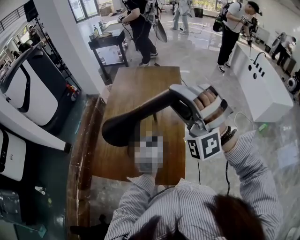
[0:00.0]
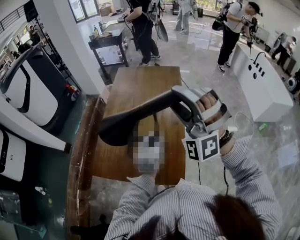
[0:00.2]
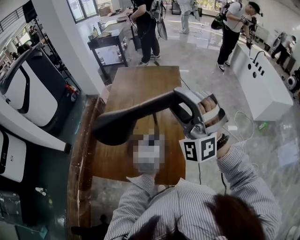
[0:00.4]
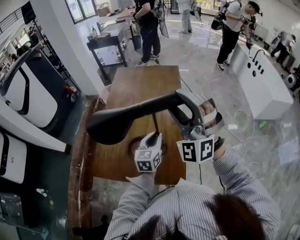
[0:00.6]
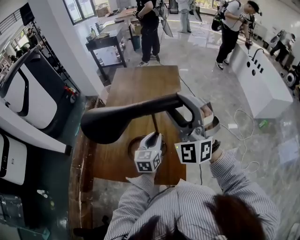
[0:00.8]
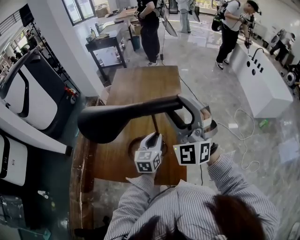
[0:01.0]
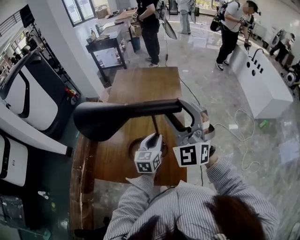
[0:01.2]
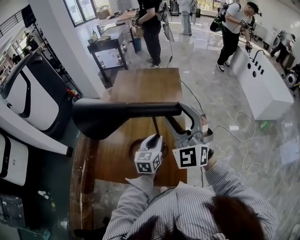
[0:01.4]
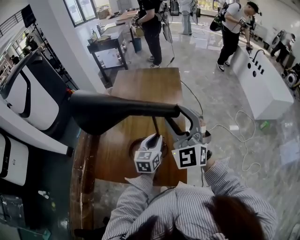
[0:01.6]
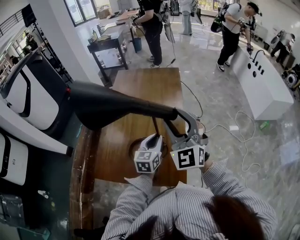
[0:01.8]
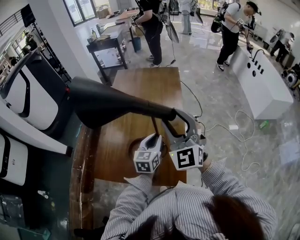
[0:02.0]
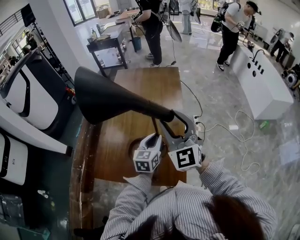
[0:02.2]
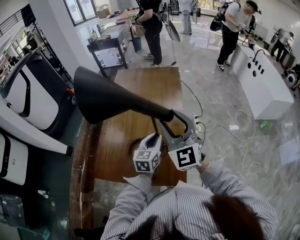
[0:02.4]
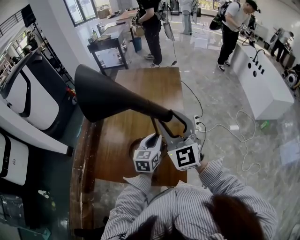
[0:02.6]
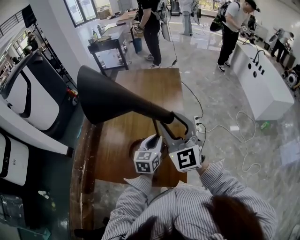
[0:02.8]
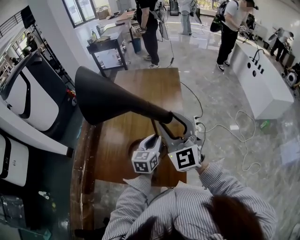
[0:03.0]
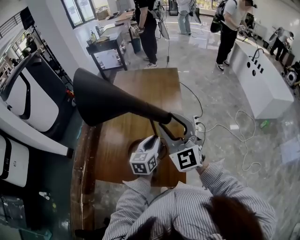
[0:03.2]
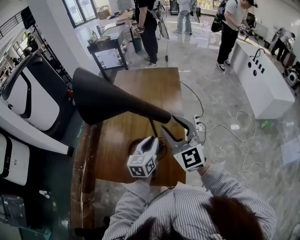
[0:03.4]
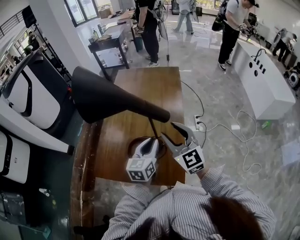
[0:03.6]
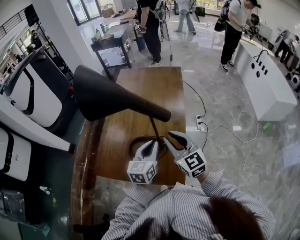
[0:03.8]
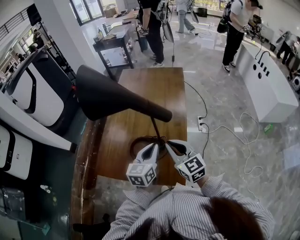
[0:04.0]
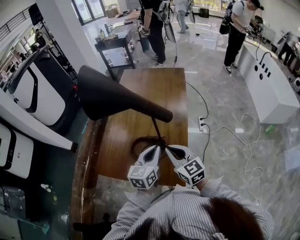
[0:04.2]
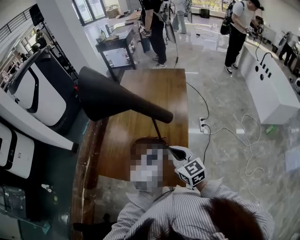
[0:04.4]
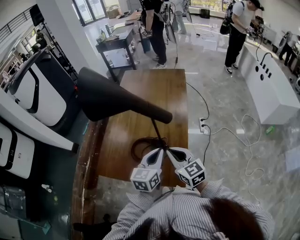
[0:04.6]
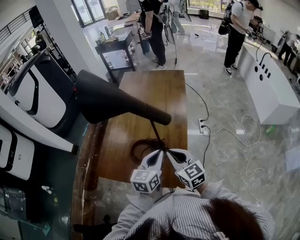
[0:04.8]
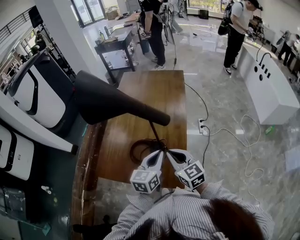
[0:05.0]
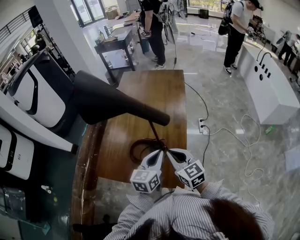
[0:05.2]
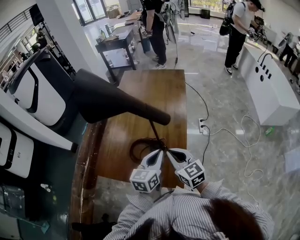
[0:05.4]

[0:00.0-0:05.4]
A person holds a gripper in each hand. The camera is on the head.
0:00.0 to 0:01.4: The right gripper changes place by some 5 cm, and twists about 50 degrees clockwise, seen from behind.
0:01.4 to 0:02.8: The right gripper turns by some 20 degrees.
0:02.8 to 0:04.0: The left gripper goes approximately 5 cm backward; the right gripper heads downward and backward, covering roughly 15 cm, rotates roughly 30 degrees, and closes.
0:04.0 to 0:05.4: The grippers make only small movements.

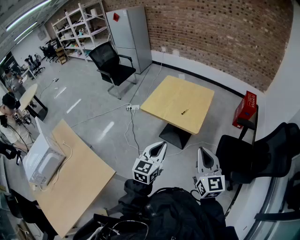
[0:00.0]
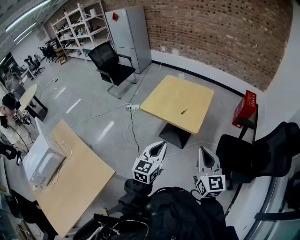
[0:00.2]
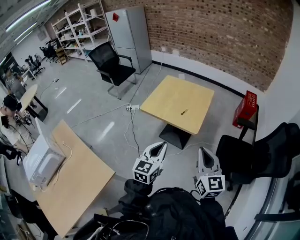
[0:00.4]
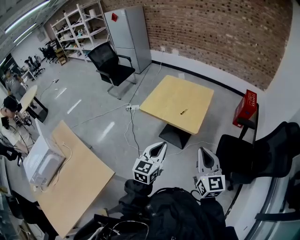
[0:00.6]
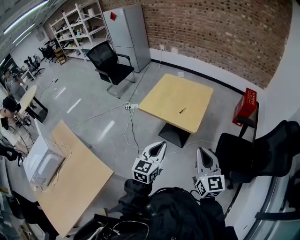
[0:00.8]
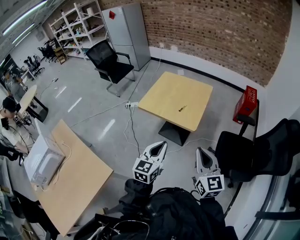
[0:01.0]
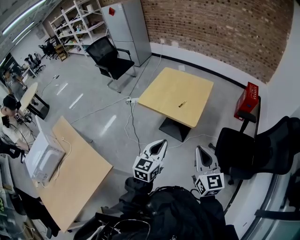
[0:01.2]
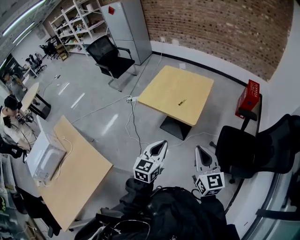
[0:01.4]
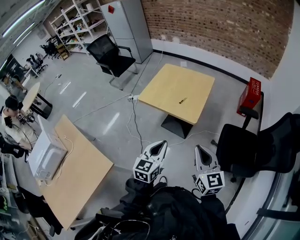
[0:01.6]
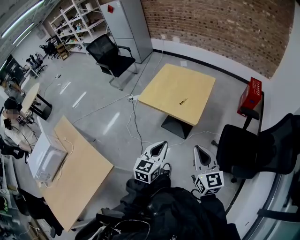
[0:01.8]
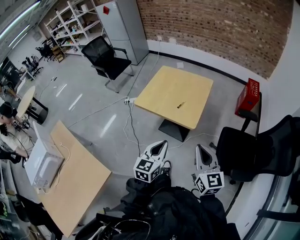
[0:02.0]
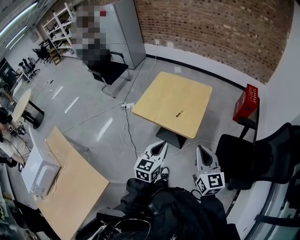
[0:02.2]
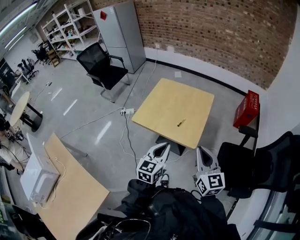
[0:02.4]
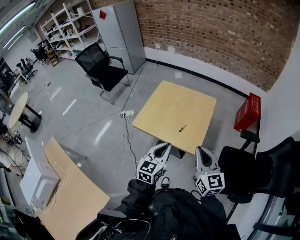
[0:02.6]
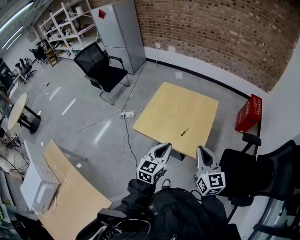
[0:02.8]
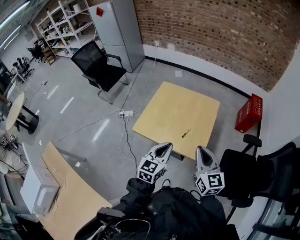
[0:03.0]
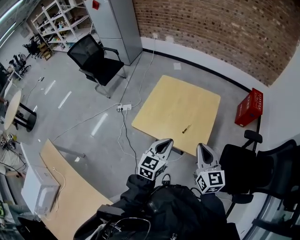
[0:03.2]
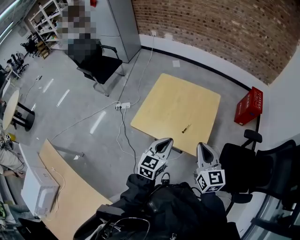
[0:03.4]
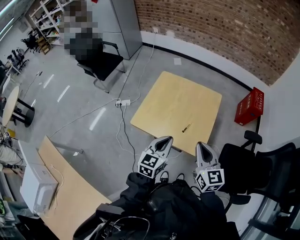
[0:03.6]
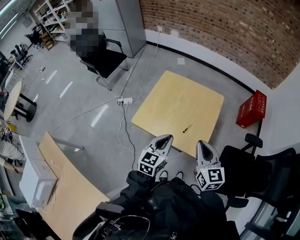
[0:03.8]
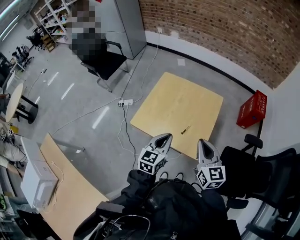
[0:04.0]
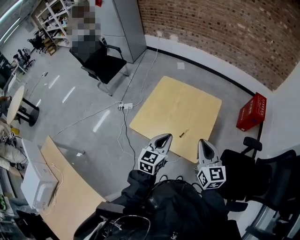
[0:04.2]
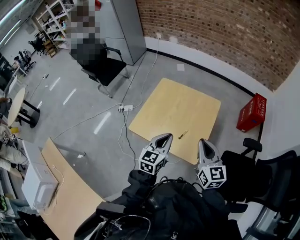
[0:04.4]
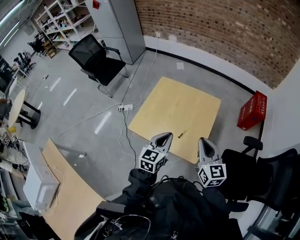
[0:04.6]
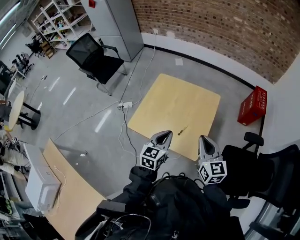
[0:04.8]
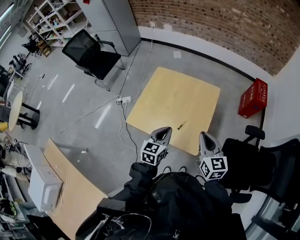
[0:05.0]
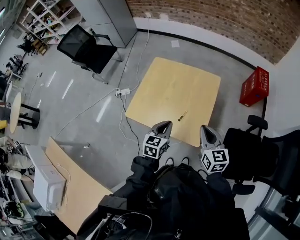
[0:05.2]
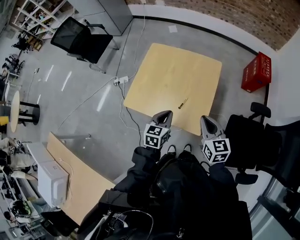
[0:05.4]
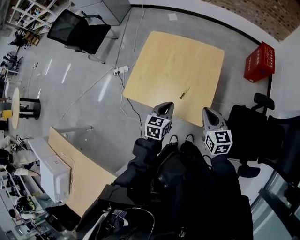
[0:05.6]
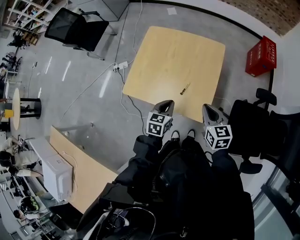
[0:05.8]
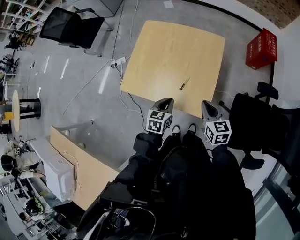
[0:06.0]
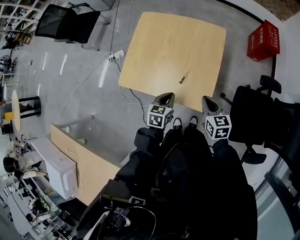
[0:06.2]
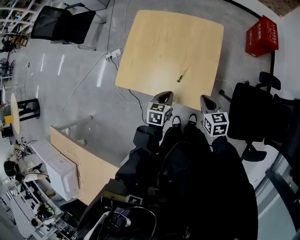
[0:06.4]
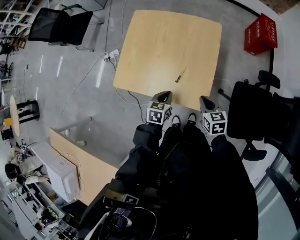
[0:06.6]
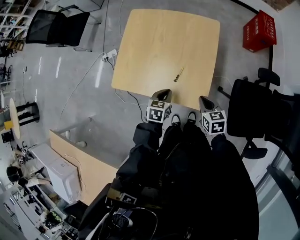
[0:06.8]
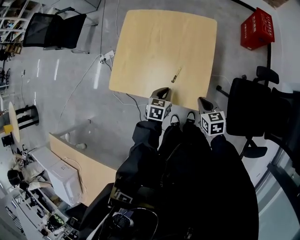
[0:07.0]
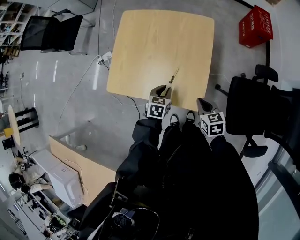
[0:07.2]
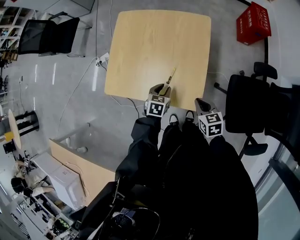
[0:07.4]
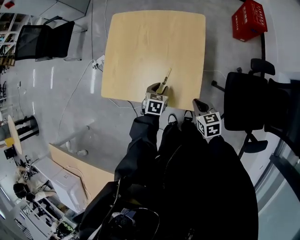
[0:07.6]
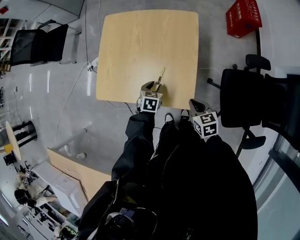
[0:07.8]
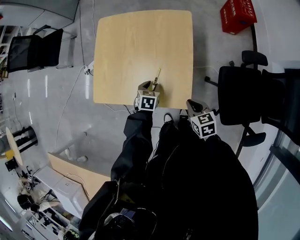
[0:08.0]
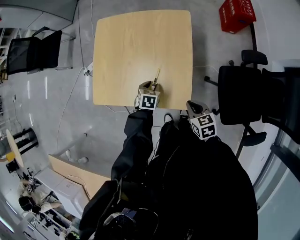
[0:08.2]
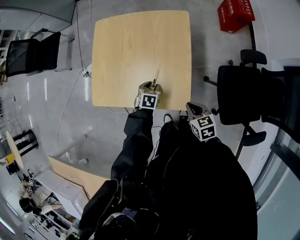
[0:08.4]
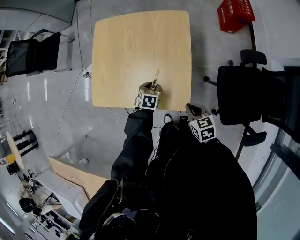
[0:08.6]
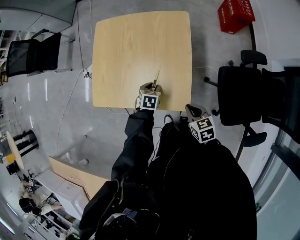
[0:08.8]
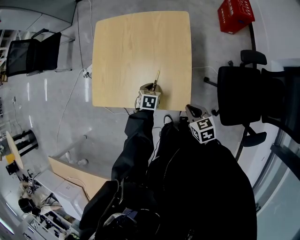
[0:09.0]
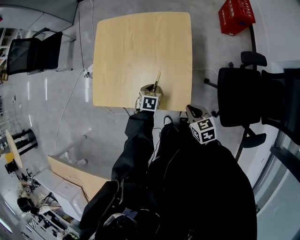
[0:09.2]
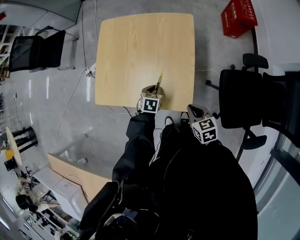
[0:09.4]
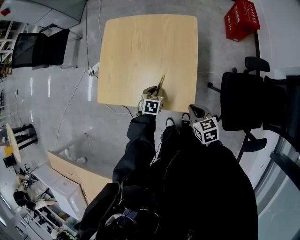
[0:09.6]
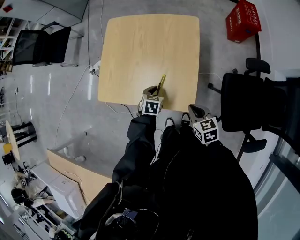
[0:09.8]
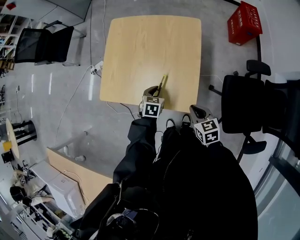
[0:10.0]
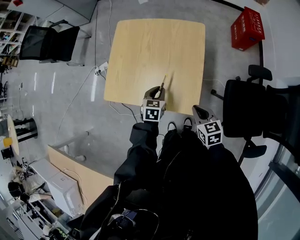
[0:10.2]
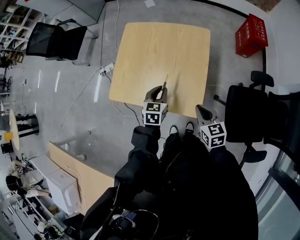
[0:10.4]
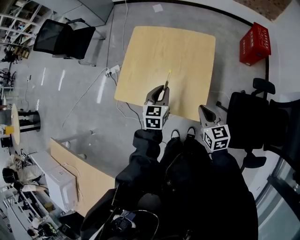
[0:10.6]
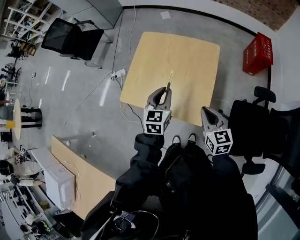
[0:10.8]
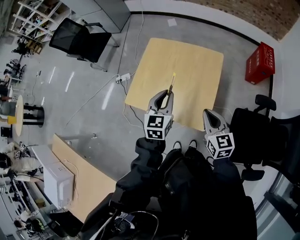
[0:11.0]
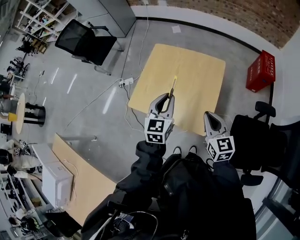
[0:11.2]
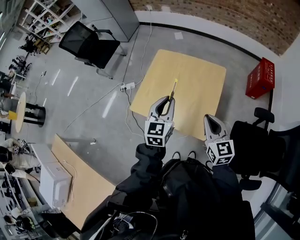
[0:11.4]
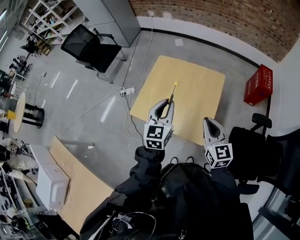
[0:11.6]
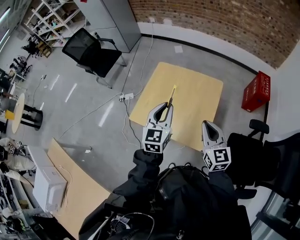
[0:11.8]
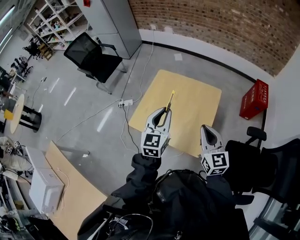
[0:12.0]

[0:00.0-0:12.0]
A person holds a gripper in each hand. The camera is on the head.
0:00.0 to 0:01.6: The left gripper shifts some 5 cm to the right; the right gripper shifts by about 5 cm.
0:01.6 to 0:03.0: The two grippers go about 30 cm forward.
0:03.0 to 0:04.4: Both grippers travel together forward, roughly 10 cm.
0:04.4 to 0:06.0: The grippers both shift downward by roughly 20 cm. The left gripper rotates roughly 30 degrees. Meanwhile the right gripper swivels about 30 degrees.
0:06.0 to 0:07.6: The left gripper heads downward and forward, covering roughly 15 cm, and opens its fingers, while the right gripper goes some 10 cm downward.
0:07.6 to 0:09.0: The grippers stay close to where they were, moving slightly.
0:09.0 to 0:10.4: The right gripper goes some 10 cm upward, while the left gripper heads upward, covering some 15 cm, and turns by roughly 30 degrees.
0:10.4 to 0:12.0: The grippers both shift upward by about 25 cm. The right gripper rotates about 30 degrees. Meanwhile the left gripper tilts its fingers roughly 30 degrees upward.

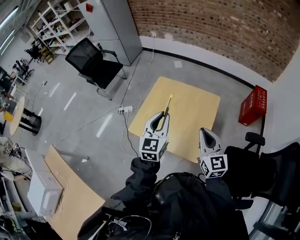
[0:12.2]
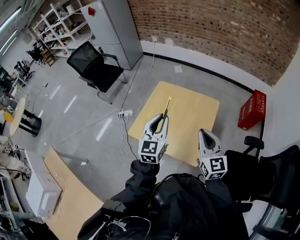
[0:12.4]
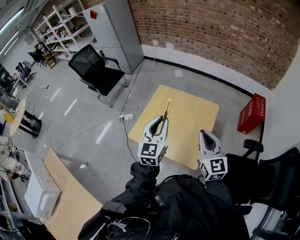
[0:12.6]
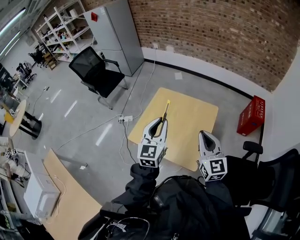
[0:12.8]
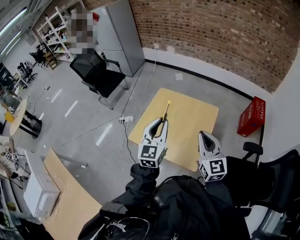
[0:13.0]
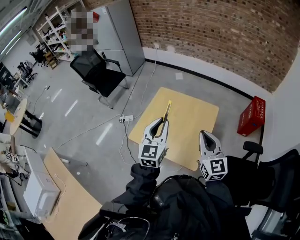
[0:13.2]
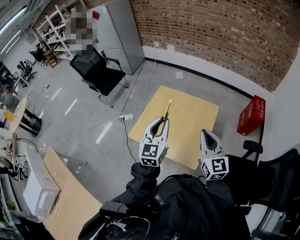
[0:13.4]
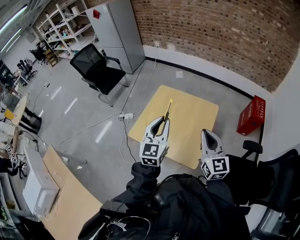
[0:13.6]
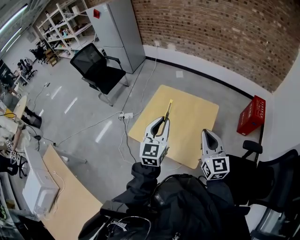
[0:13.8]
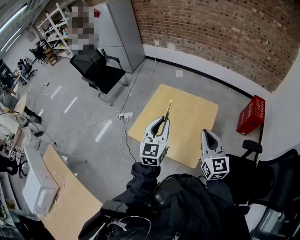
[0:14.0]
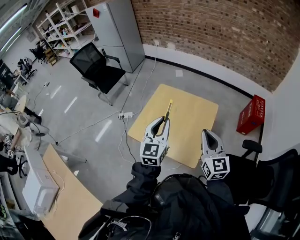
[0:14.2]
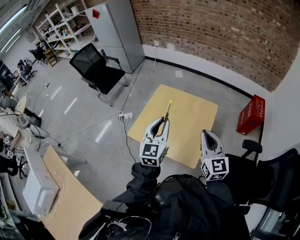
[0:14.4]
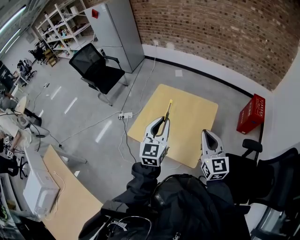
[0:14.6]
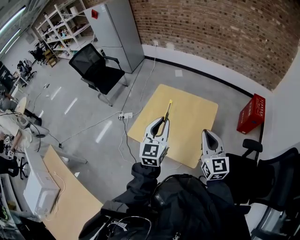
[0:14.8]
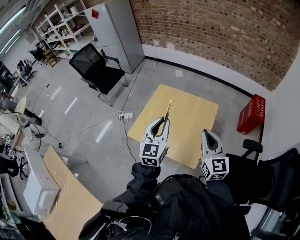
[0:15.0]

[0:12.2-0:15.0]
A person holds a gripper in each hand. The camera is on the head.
0:12.2 to 0:13.6: There are only small adjustments of the grippers.
0:13.6 to 0:15.0: The two grippers keep their place.

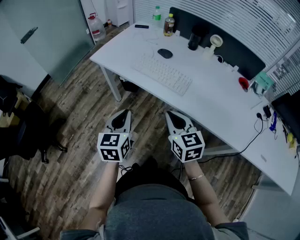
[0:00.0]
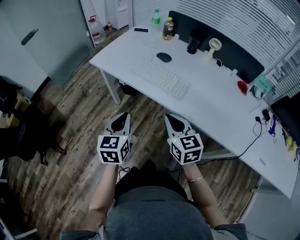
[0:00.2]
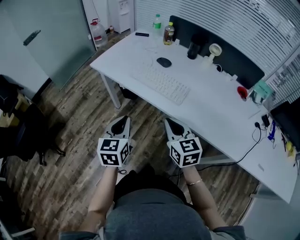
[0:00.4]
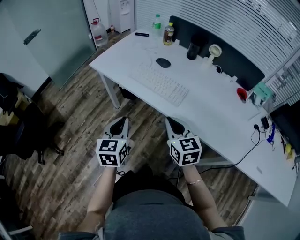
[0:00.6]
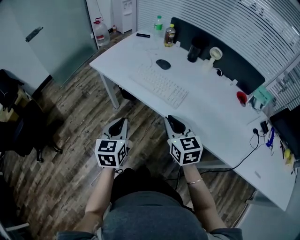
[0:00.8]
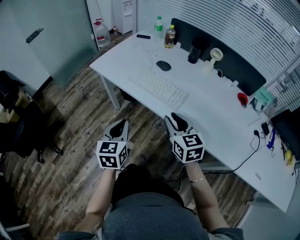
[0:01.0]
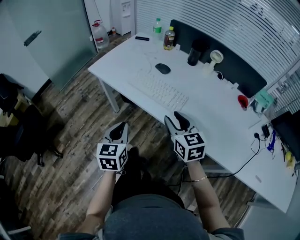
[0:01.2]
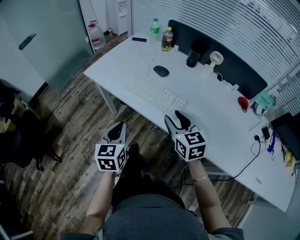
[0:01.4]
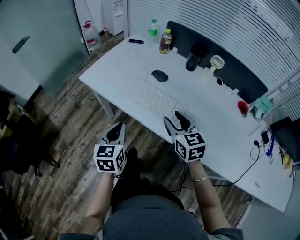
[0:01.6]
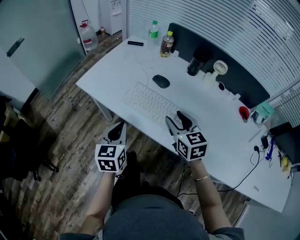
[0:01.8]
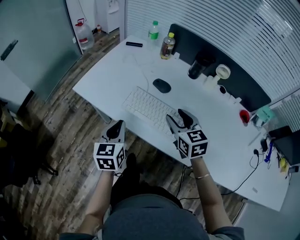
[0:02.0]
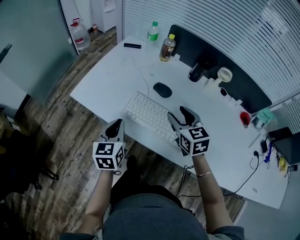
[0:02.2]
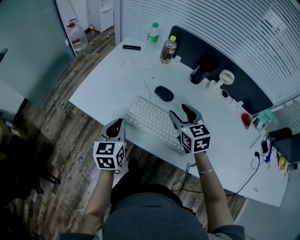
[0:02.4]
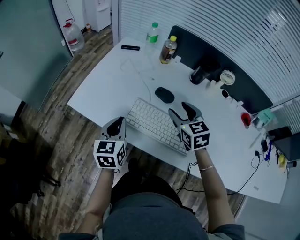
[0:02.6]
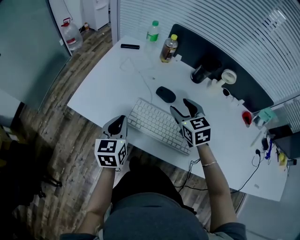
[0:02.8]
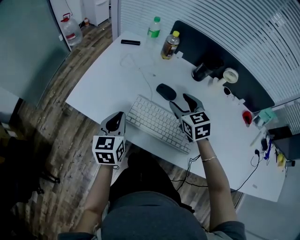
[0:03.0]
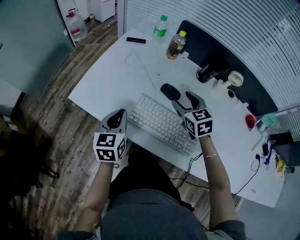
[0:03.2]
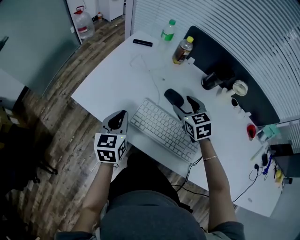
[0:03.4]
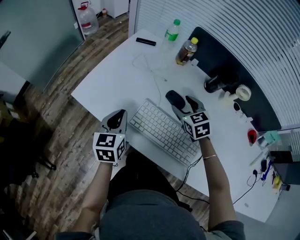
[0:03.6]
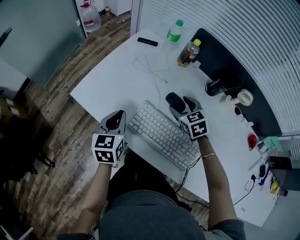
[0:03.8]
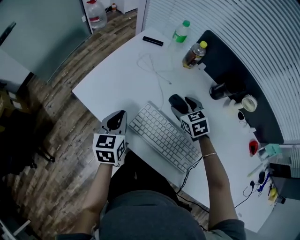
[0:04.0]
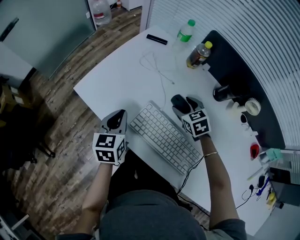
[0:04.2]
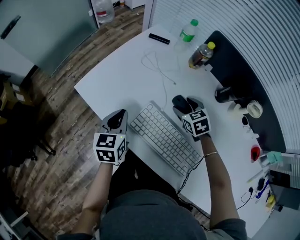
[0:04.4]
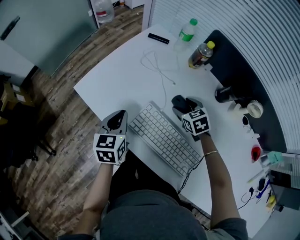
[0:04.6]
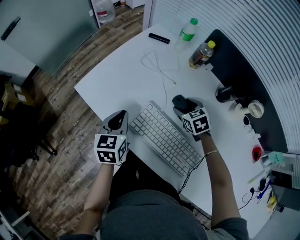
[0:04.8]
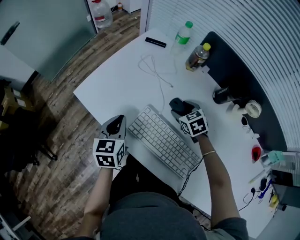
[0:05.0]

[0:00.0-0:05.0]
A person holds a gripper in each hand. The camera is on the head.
0:00.0 to 0:01.6: The left gripper moves forward, approximately 10 cm. The right gripper is displaced forward and to the right by some 15 cm, and opens its fingers.
0:01.6 to 0:03.4: The two grippers go roughly 25 cm forward.
0:03.4 to 0:05.0: The right gripper moves downward and forward, roughly 10 cm.
